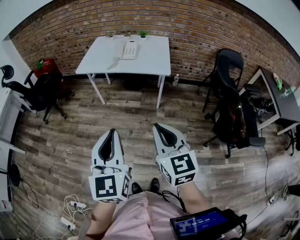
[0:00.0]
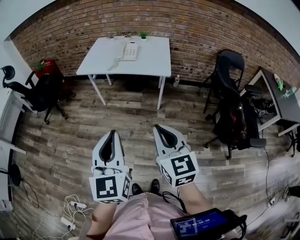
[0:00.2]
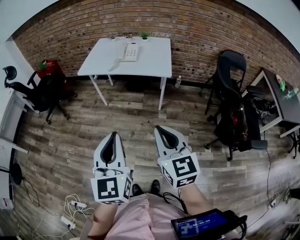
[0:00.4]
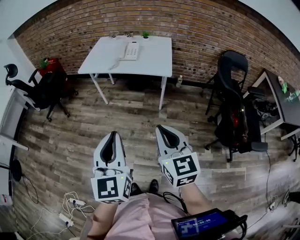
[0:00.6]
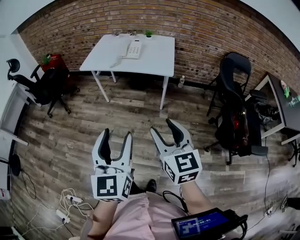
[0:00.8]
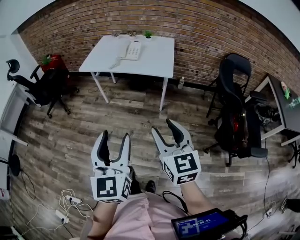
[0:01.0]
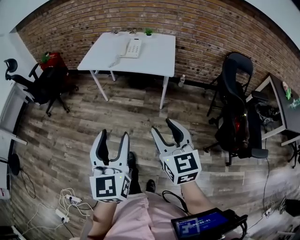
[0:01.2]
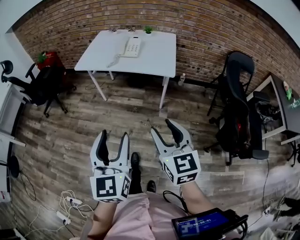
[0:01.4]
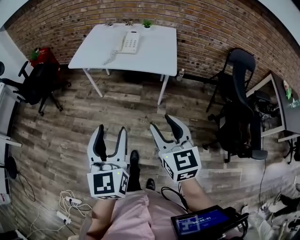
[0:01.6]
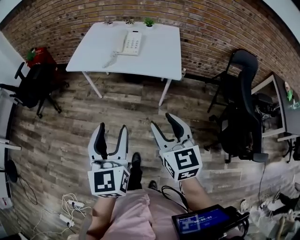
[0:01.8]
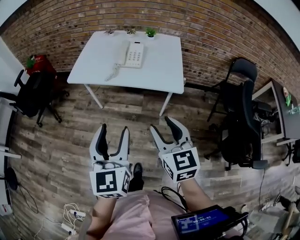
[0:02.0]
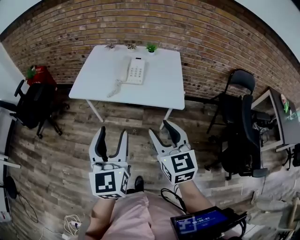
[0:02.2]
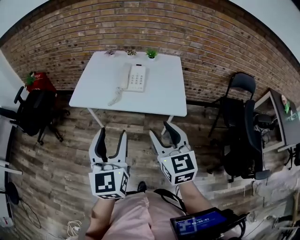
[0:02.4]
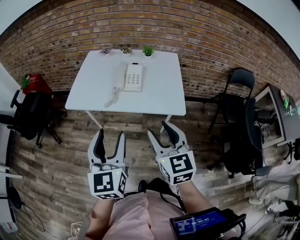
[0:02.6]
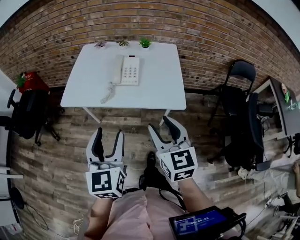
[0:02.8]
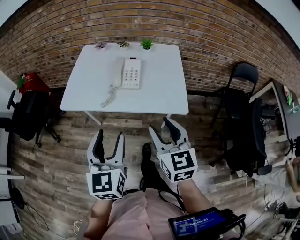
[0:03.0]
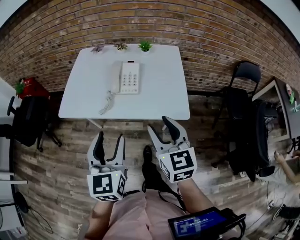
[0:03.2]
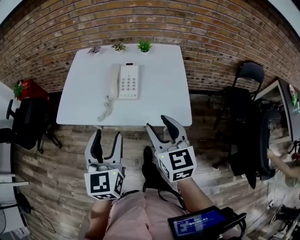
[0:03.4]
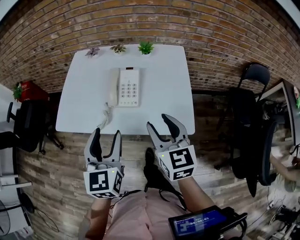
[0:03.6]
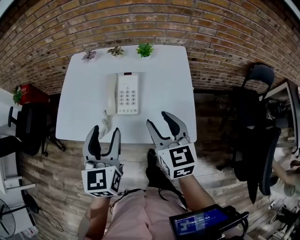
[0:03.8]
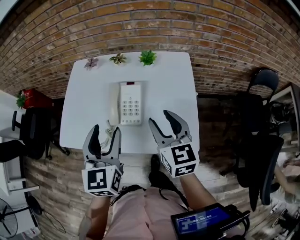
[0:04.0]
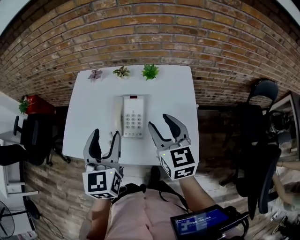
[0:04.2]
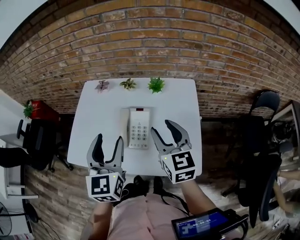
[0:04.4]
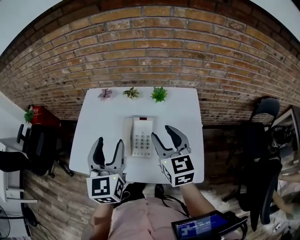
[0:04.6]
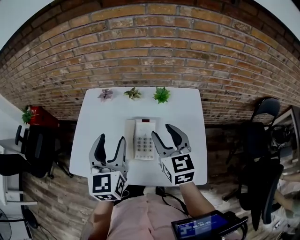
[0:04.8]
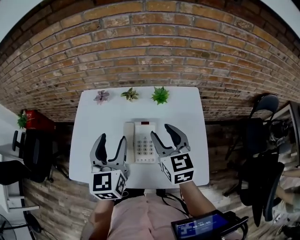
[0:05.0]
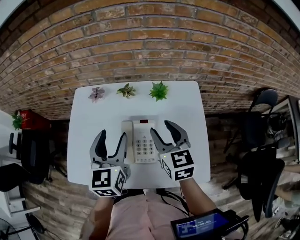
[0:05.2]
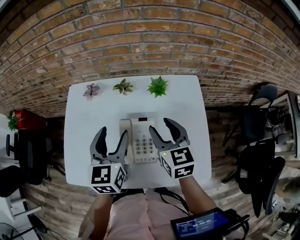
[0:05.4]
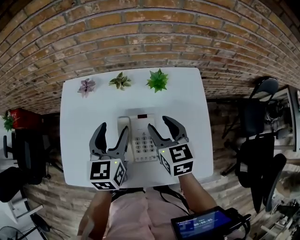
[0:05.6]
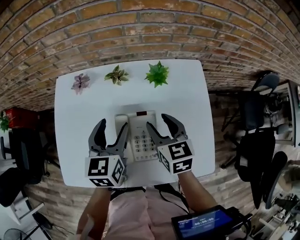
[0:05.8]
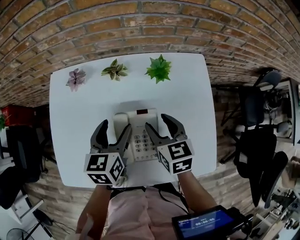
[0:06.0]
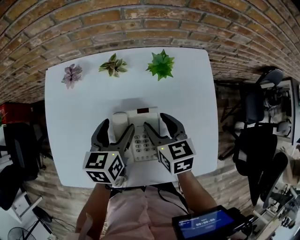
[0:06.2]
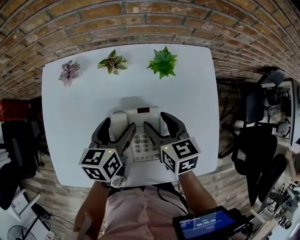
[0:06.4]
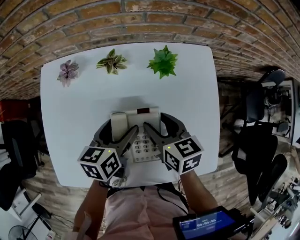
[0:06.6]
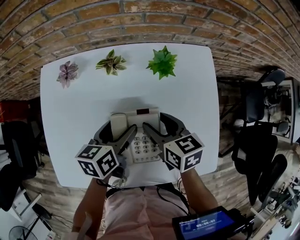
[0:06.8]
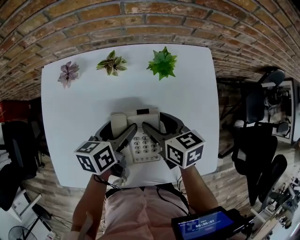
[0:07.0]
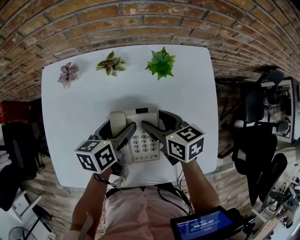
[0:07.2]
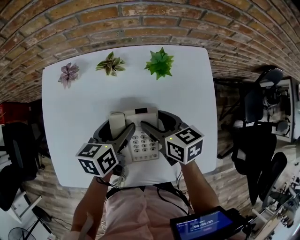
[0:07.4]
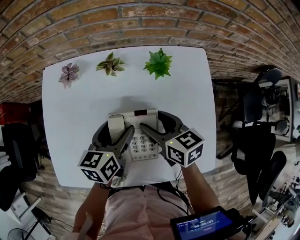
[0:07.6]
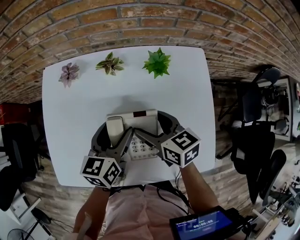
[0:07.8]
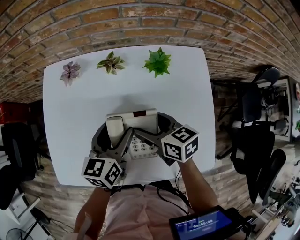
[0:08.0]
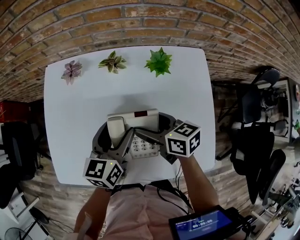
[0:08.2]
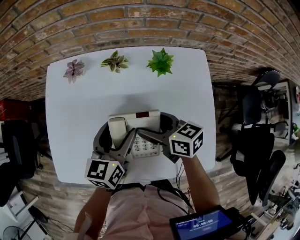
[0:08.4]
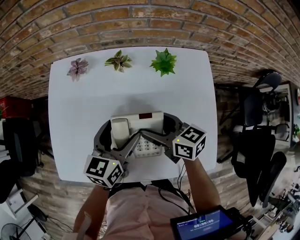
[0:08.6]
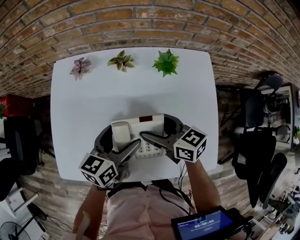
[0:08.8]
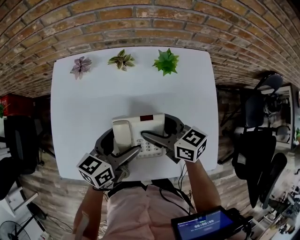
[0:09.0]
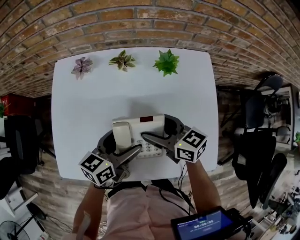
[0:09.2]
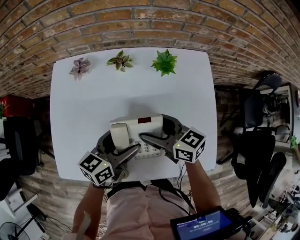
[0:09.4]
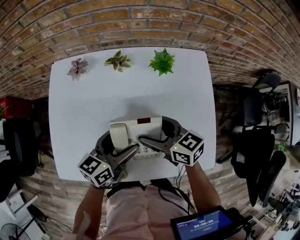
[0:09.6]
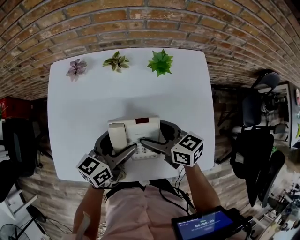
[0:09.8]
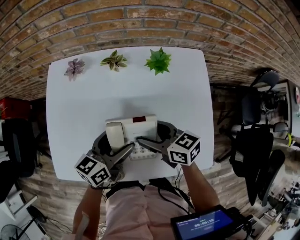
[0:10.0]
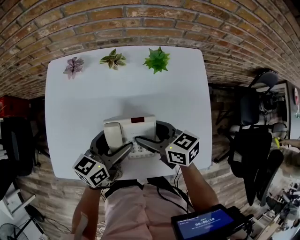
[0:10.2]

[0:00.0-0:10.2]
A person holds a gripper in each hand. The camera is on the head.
0:00.0 to 0:01.4: The right gripper goes approximately 10 cm forward and to the right, and opens. The left gripper travels forward by roughly 5 cm, and opens.
0:01.4 to 0:03.0: The two grippers go roughly 35 cm forward.
0:03.0 to 0:04.4: The two grippers go roughly 30 cm forward.
0:04.4 to 0:05.8: The right gripper moves downward and forward, roughly 20 cm, and turns by about 20 degrees. Meanwhile the left gripper goes about 20 cm forward and downward, and changes its angle by some 30 degrees.
0:05.8 to 0:07.2: The left gripper goes about 10 cm downward, and rotates some 30 degrees. The right gripper shifts roughly 5 cm downward, and swivels about 20 degrees.
0:07.2 to 0:08.8: The right gripper changes place by about 5 cm. The left gripper heads backward, covering approximately 5 cm.
0:08.8 to 0:10.2: The grippers make only small movements.

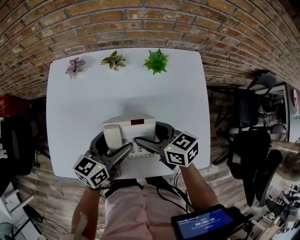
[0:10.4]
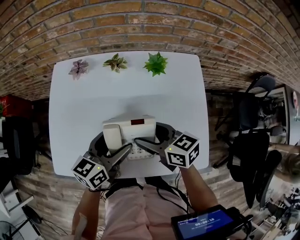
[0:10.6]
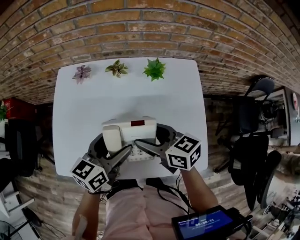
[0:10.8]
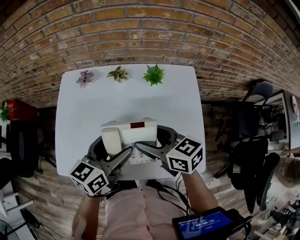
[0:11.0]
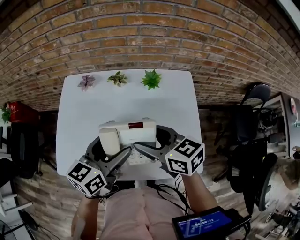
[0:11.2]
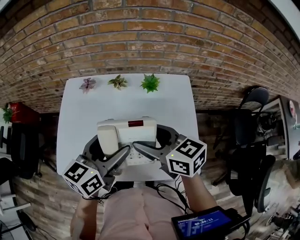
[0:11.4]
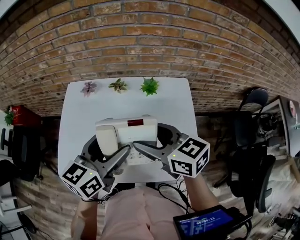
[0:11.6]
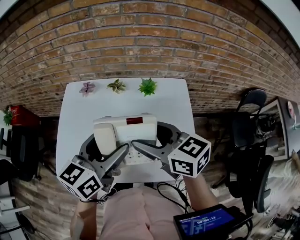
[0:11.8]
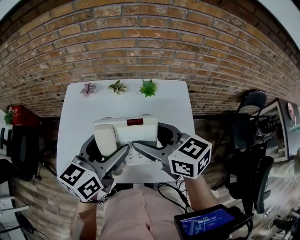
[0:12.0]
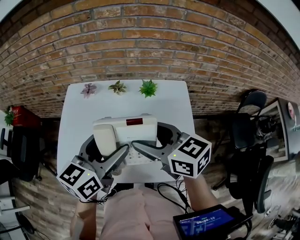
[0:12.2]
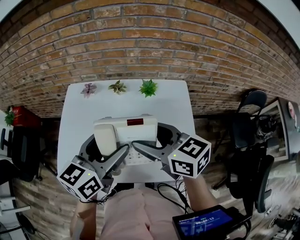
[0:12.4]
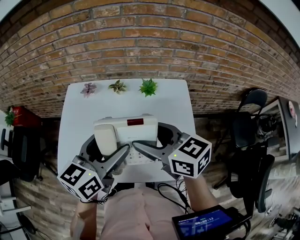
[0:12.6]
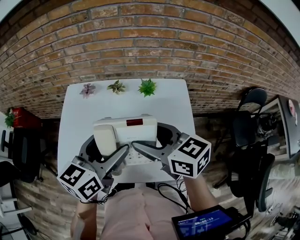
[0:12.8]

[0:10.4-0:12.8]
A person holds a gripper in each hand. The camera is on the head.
0:10.4 to 0:11.6: The grippers both shift upward by approximately 20 cm.
0:11.6 to 0:12.8: The grippers stay close to where they were, moving slightly.

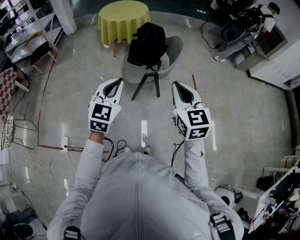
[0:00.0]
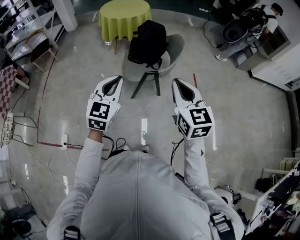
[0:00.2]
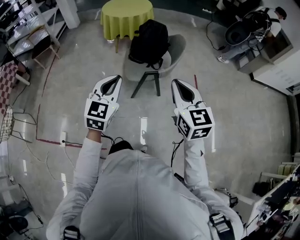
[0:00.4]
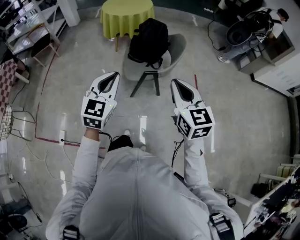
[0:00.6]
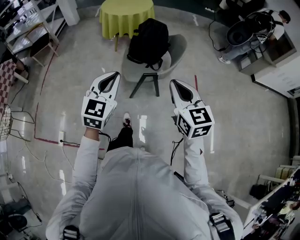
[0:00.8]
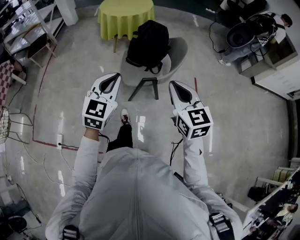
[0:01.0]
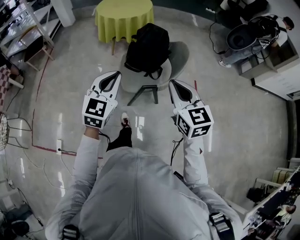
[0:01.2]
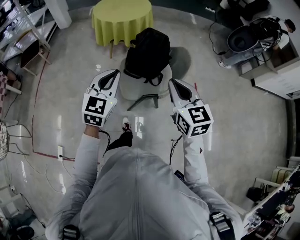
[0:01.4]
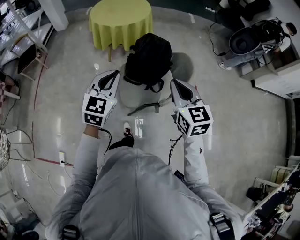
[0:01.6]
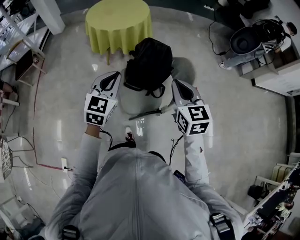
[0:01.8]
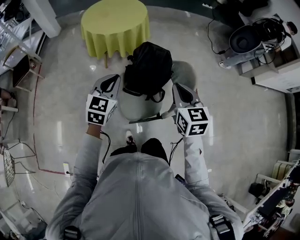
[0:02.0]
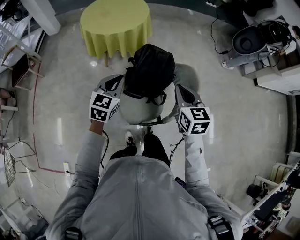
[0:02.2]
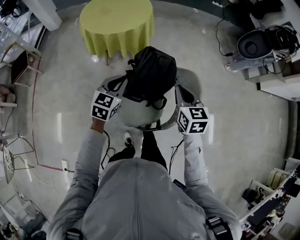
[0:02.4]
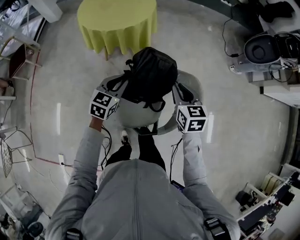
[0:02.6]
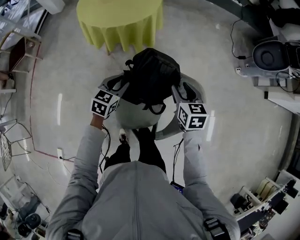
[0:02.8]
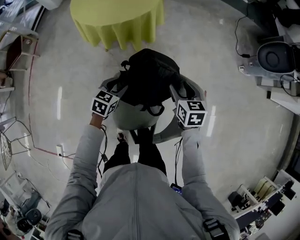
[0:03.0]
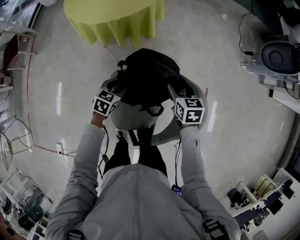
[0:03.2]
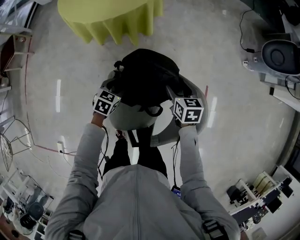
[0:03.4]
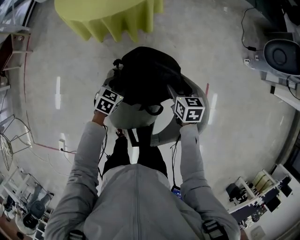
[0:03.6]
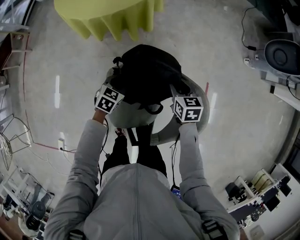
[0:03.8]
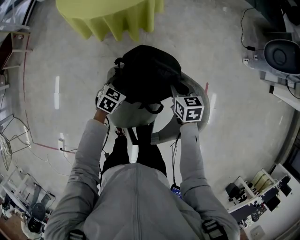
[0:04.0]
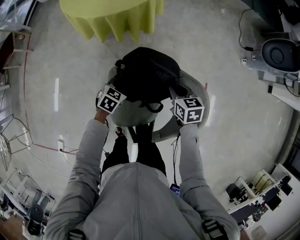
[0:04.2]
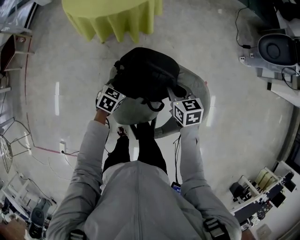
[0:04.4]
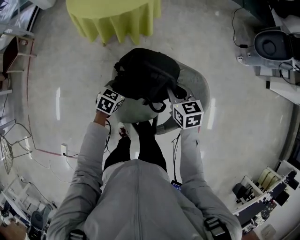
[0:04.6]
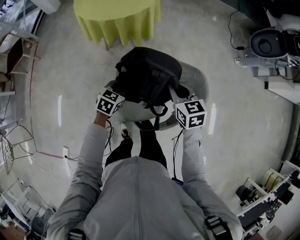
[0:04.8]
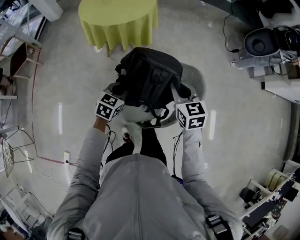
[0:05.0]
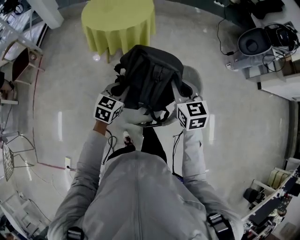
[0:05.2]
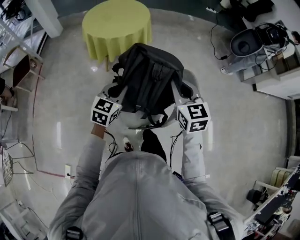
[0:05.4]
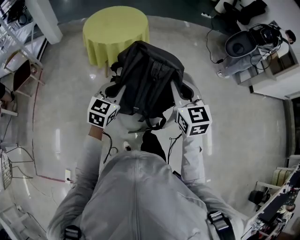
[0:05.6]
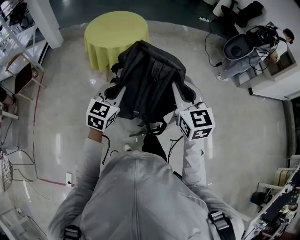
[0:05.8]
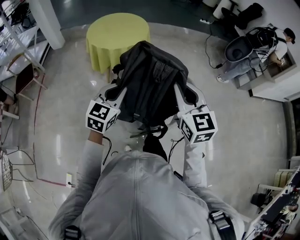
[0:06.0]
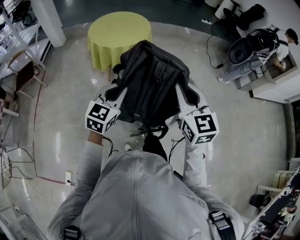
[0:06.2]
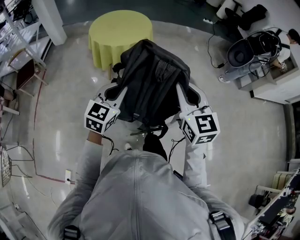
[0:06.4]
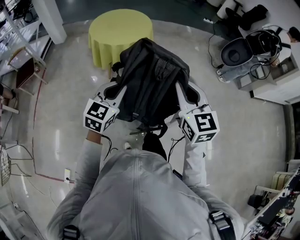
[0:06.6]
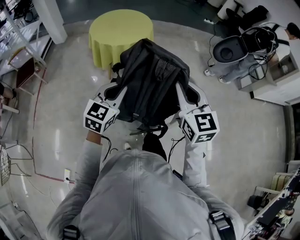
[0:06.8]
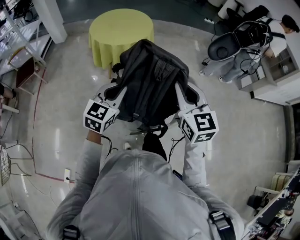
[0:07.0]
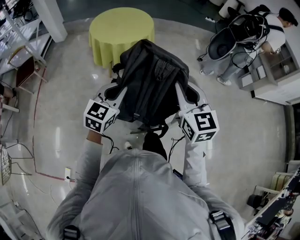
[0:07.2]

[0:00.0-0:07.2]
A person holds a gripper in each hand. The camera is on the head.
0:00.0 to 0:01.4: Both grippers travel together forward, some 25 cm.
0:01.4 to 0:02.8: Both grippers move forward and downward, approximately 40 cm. The left gripper turns by some 30 degrees, and opens up; the right gripper changes its angle by about 30 degrees, and opens its fingers.
0:02.8 to 0:04.4: The two grippers go about 10 cm downward. The right gripper closes its fingers; the left gripper closes its fingers.
0:04.4 to 0:05.8: The grippers both shift upward and backward by roughly 40 cm. The right gripper angles its fingers upward, by about 30 degrees; the left gripper points its fingers some 30 degrees further upward.
0:05.8 to 0:07.2: The grippers make only small movements.

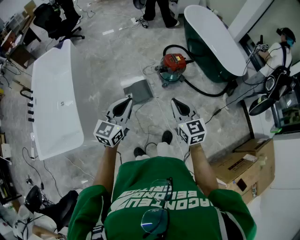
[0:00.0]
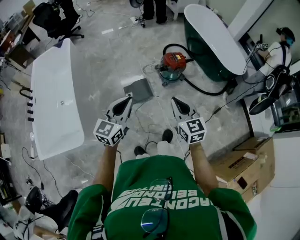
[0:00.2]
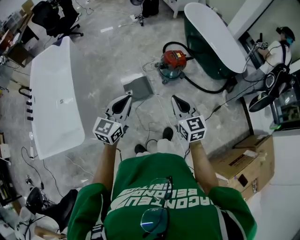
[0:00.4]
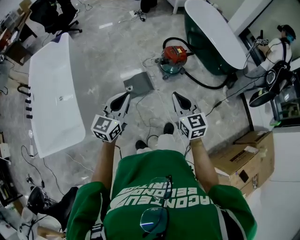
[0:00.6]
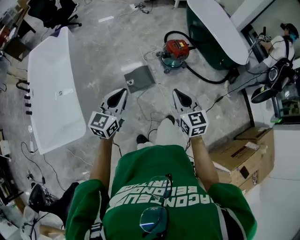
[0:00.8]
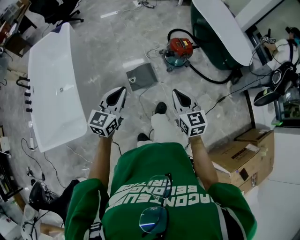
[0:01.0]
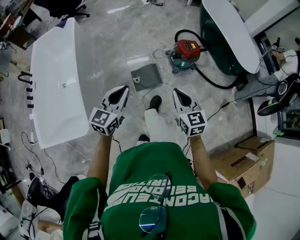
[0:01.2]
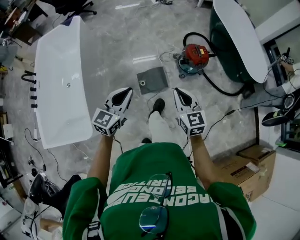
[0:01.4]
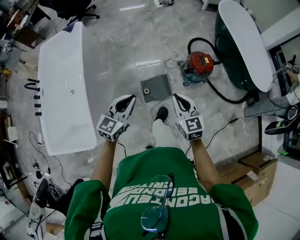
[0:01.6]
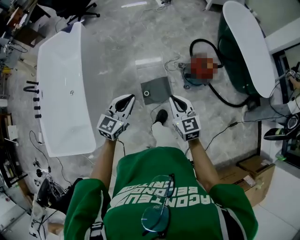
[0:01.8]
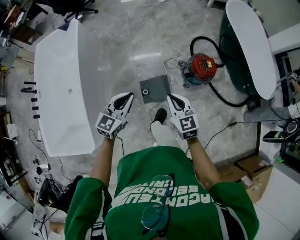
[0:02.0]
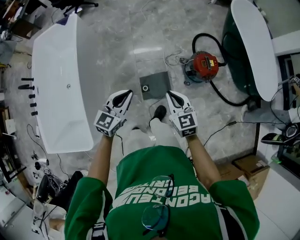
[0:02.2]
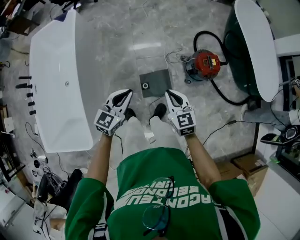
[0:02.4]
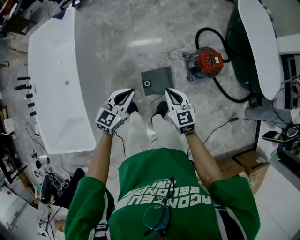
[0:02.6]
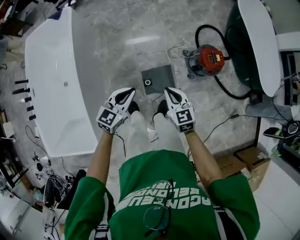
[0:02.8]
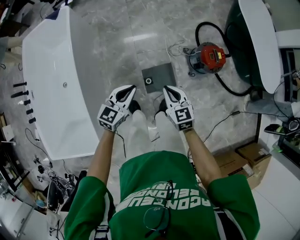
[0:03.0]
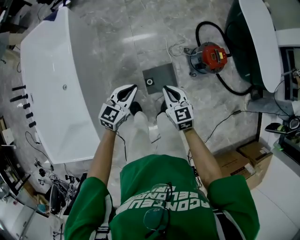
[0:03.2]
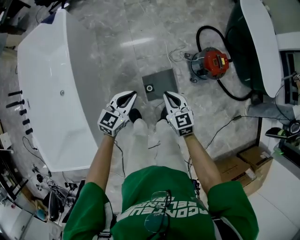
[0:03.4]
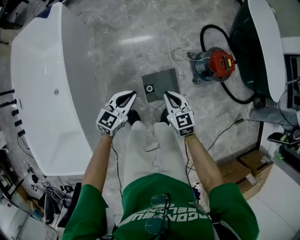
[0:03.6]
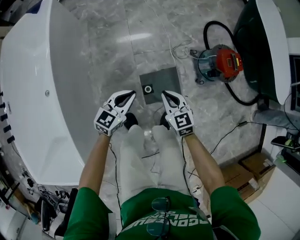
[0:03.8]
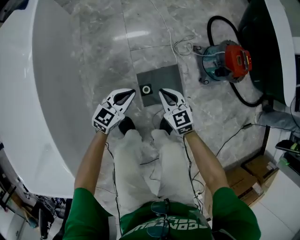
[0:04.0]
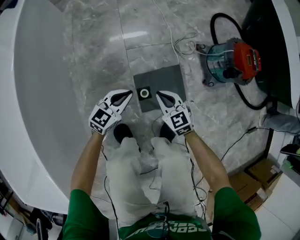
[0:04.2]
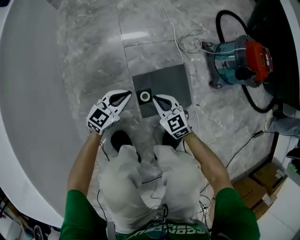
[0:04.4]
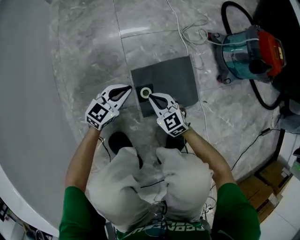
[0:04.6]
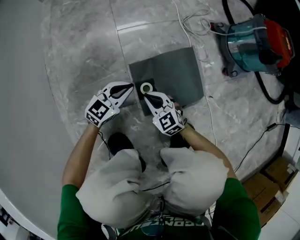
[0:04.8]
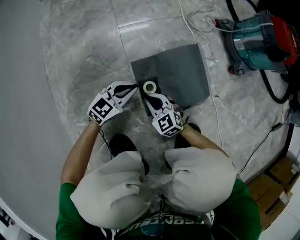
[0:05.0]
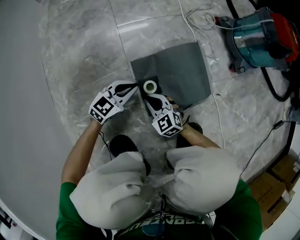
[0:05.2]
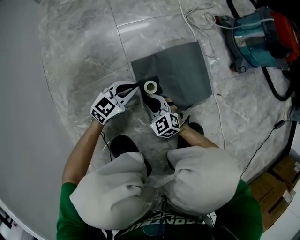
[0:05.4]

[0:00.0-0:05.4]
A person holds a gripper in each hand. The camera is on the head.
0:00.0 to 0:01.4: The left gripper goes roughly 20 cm to the left, forward and downward, while the right gripper travels forward, to the left and downward by roughly 20 cm.
0:01.4 to 0:02.8: The right gripper is displaced forward, downward and to the left by roughly 30 cm; the left gripper goes some 25 cm forward and downward.
0:02.8 to 0:04.0: Both grippers travel together downward, some 40 cm.
0:04.0 to 0:05.4: The two grippers go approximately 40 cm downward.
